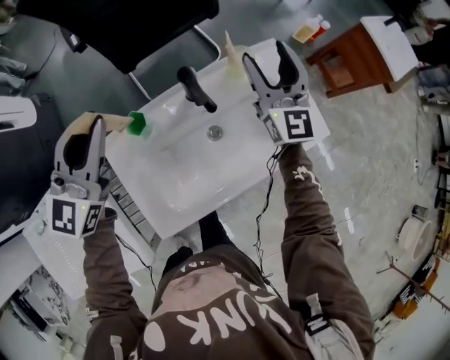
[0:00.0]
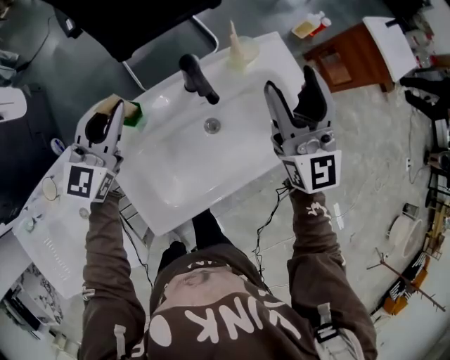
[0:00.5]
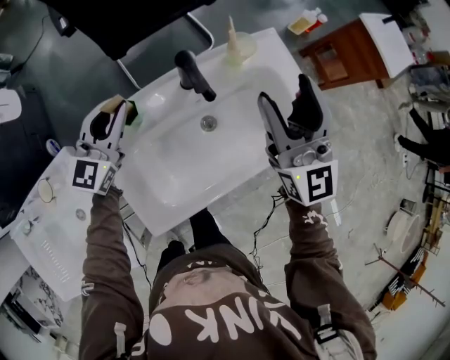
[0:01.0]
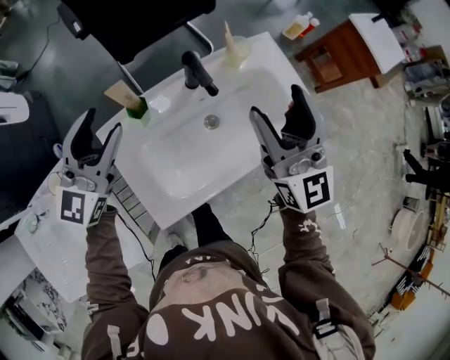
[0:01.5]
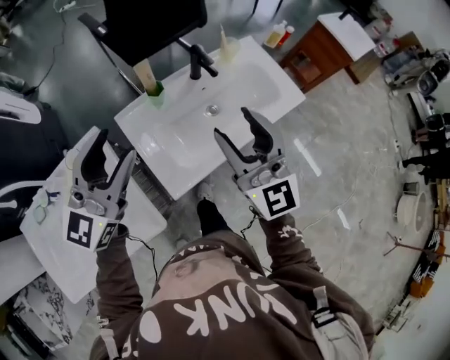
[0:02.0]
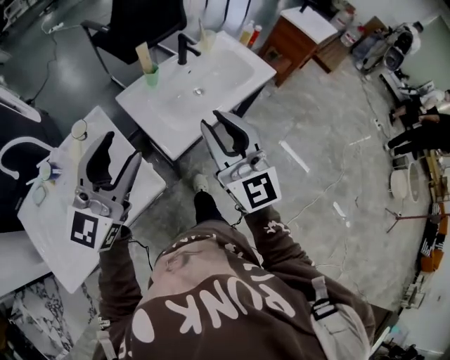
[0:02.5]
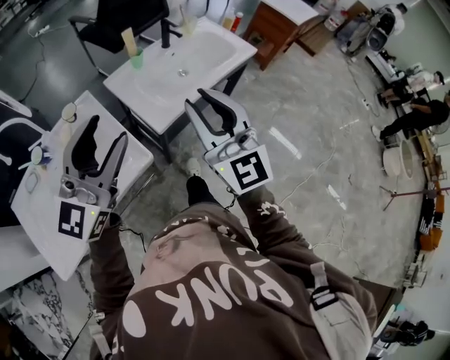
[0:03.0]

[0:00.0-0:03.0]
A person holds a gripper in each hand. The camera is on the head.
0:00.0 to 0:01.5: The right gripper shifts some 15 cm backward, while the left gripper travels downward and back again, approximately 15 cm each way, and opens up.
0:01.5 to 0:03.0: The pair of grippers is taken backward, about 40 cm. The right gripper closes up.

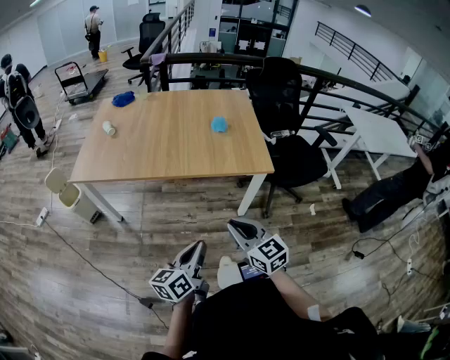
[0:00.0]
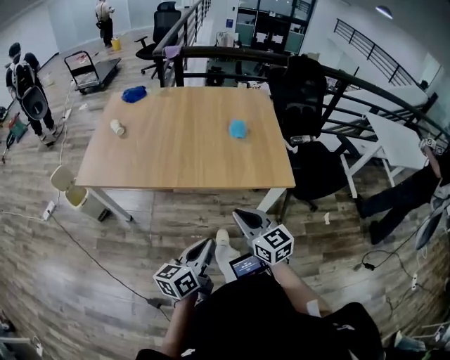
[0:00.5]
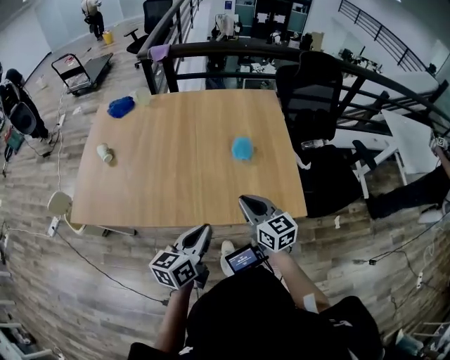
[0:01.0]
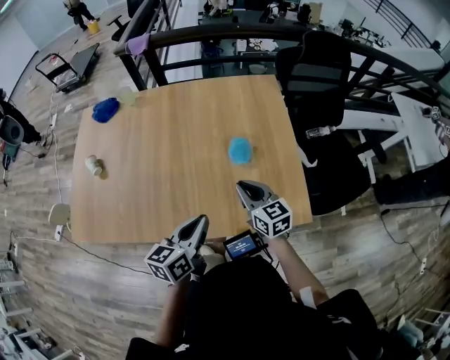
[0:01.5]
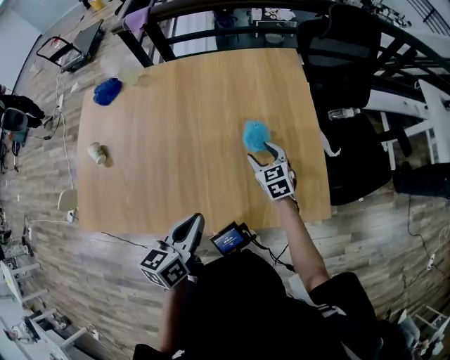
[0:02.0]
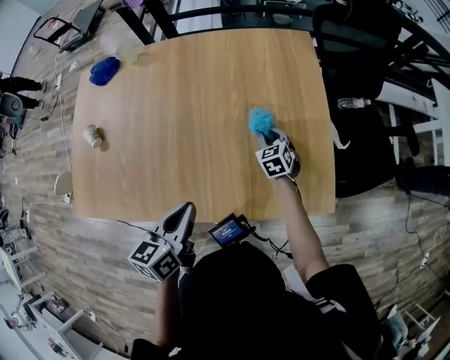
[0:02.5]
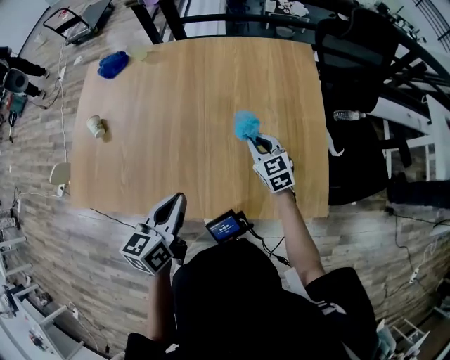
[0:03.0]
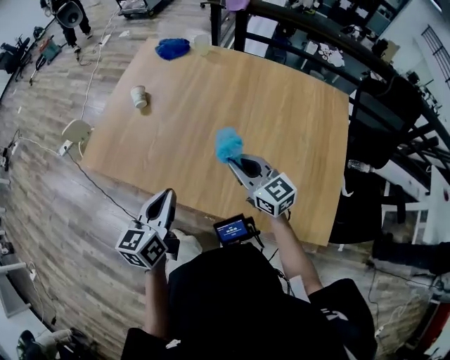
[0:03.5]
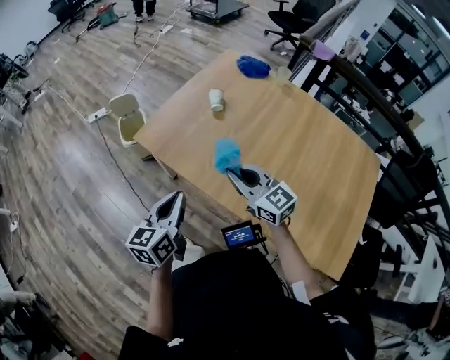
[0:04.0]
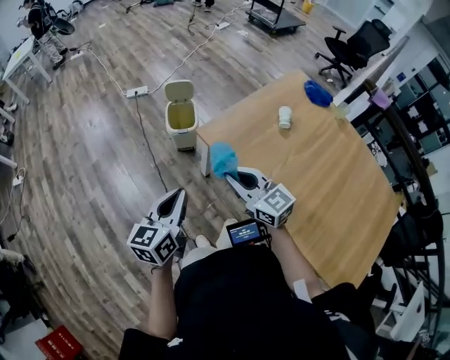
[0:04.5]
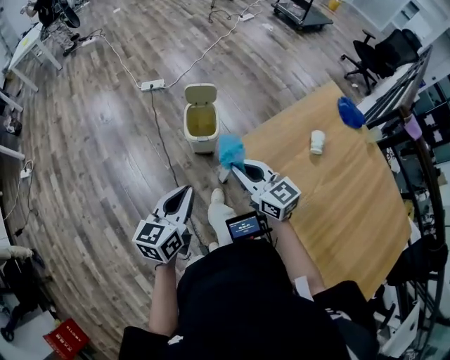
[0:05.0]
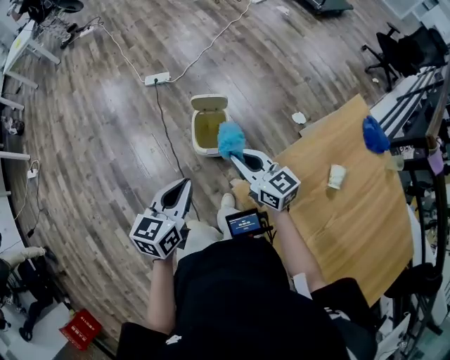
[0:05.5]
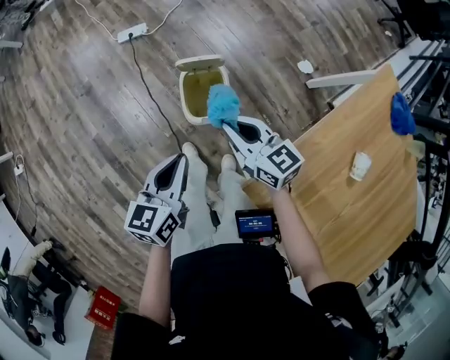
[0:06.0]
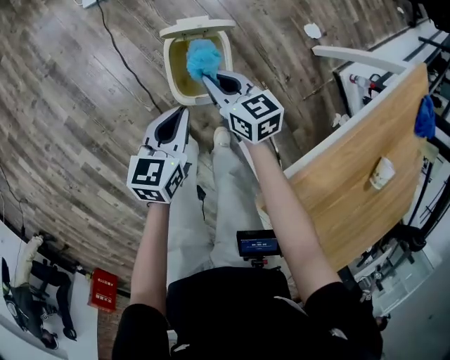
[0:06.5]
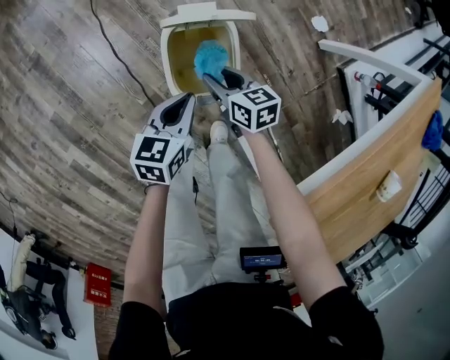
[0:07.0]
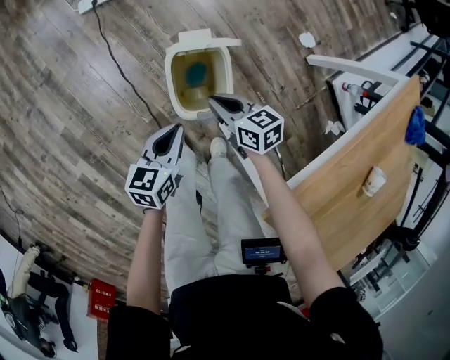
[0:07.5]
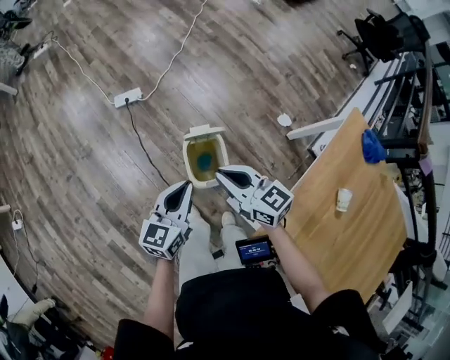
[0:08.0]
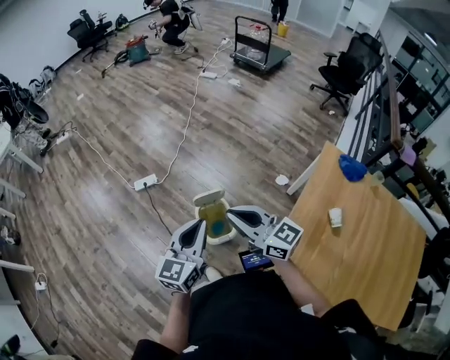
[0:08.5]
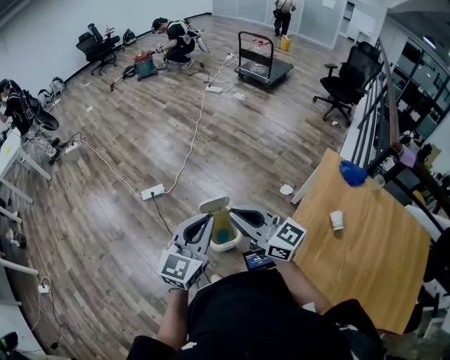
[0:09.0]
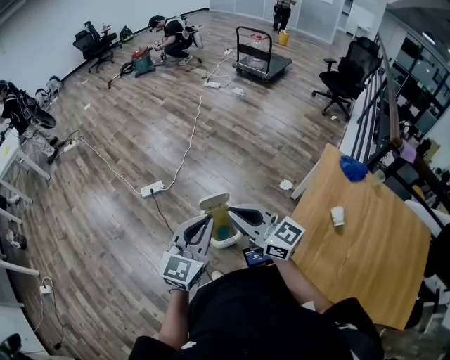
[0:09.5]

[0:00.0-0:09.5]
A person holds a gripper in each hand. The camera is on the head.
0:00.0 to 0:02.0: The pair of grippers is taken forward, approximately 60 cm. The right gripper swivels approximately 20 degrees, and opens; the left gripper swivels roughly 20 degrees.
0:02.0 to 0:04.0: The left gripper shifts by some 40 cm, and swivels about 40 degrees. The right gripper ends up approximately 50 cm from where it was, rotates approximately 60 degrees, and closes its fingers.
0:04.0 to 0:05.5: Both grippers are carried forward and to the left, about 60 cm. The right gripper rotates some 20 degrees.
0:05.5 to 0:07.5: The two grippers go approximately 50 cm downward and forward. The right gripper rotates about 30 degrees, and opens, then closes again.
0:07.5 to 0:09.5: Both grippers travel together upward, approximately 60 cm. The right gripper tips its fingers upward by about 40 degrees. Meanwhile the left gripper rotates around the line of its fingers by about 40 degrees, clockwise from behind.

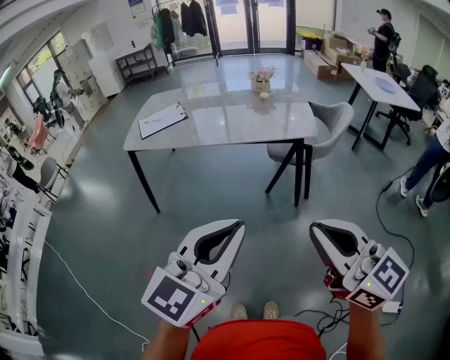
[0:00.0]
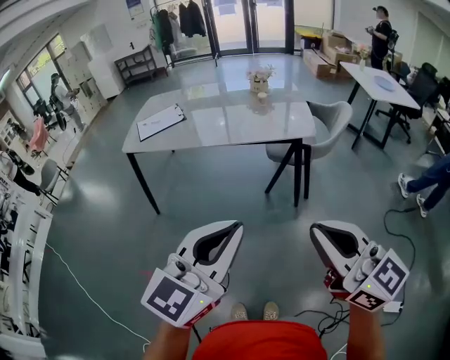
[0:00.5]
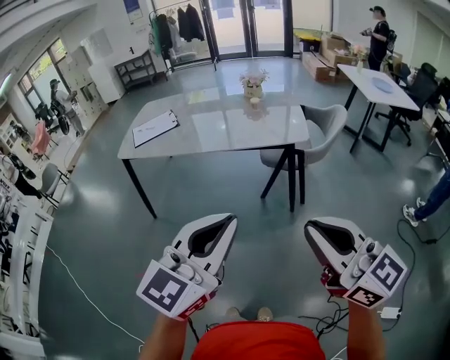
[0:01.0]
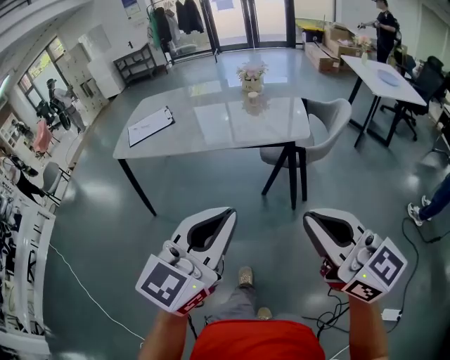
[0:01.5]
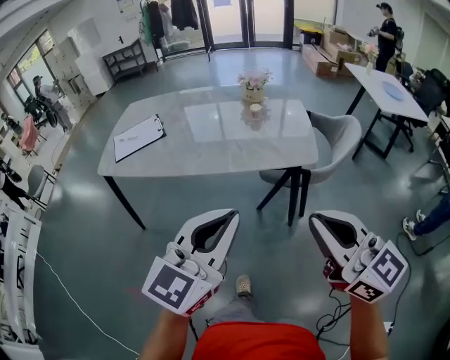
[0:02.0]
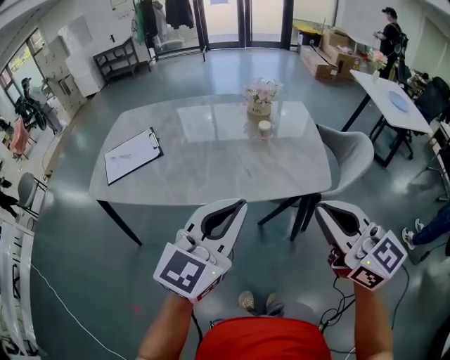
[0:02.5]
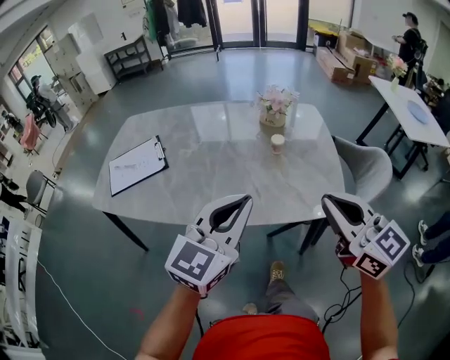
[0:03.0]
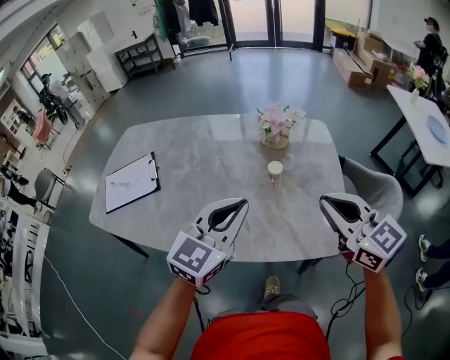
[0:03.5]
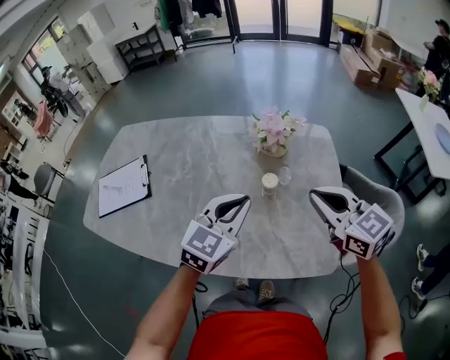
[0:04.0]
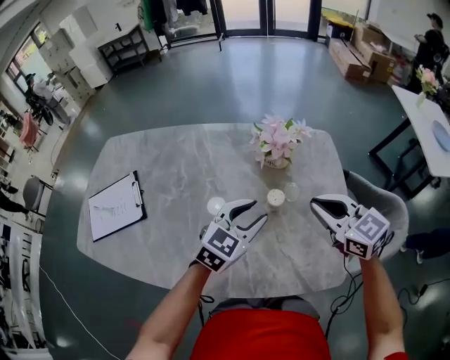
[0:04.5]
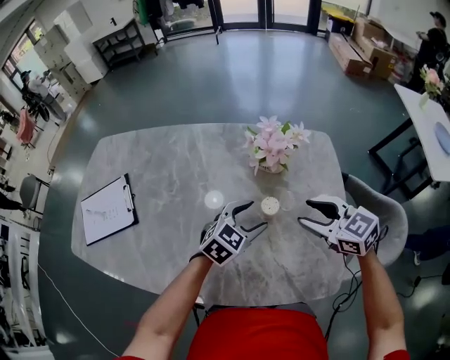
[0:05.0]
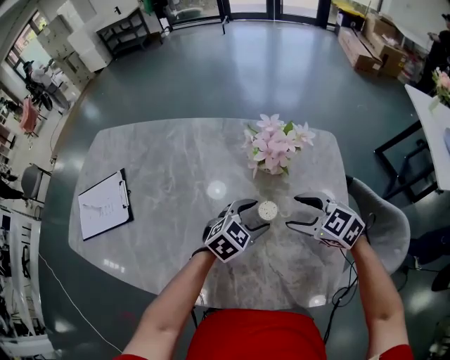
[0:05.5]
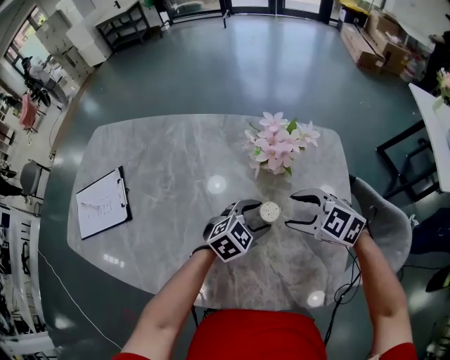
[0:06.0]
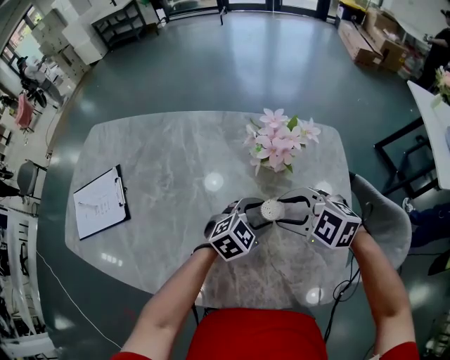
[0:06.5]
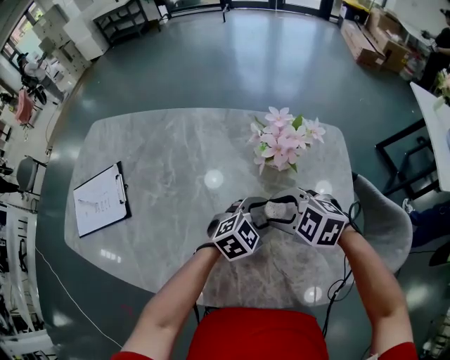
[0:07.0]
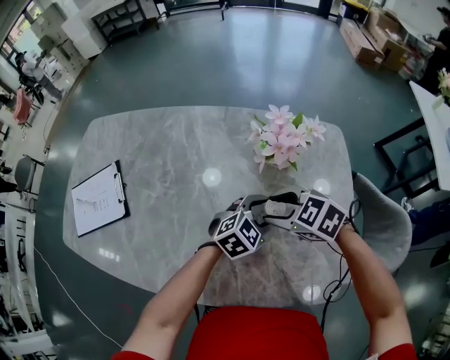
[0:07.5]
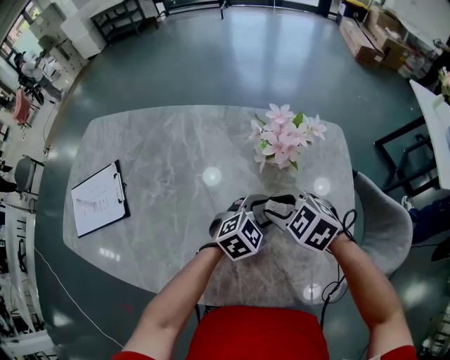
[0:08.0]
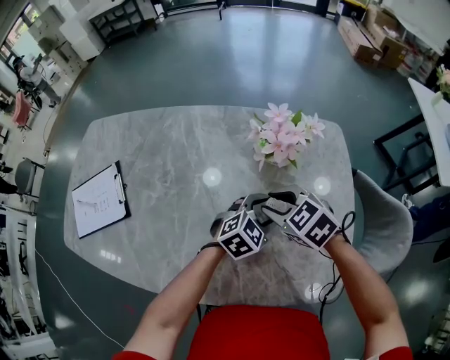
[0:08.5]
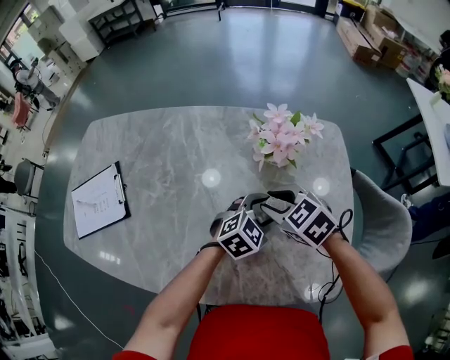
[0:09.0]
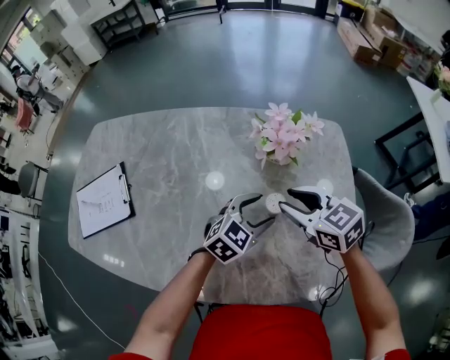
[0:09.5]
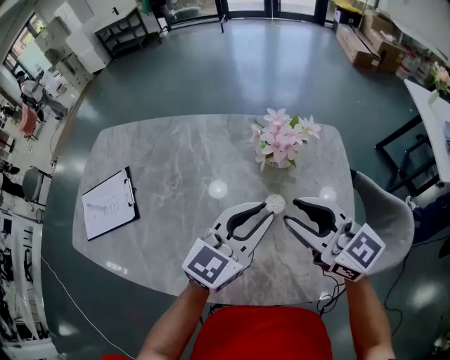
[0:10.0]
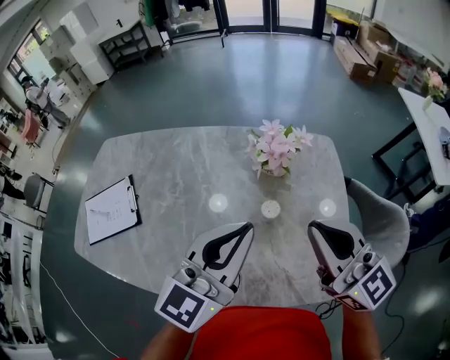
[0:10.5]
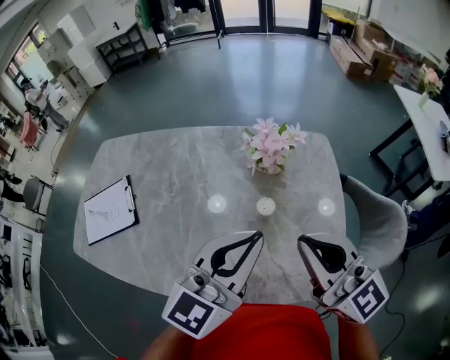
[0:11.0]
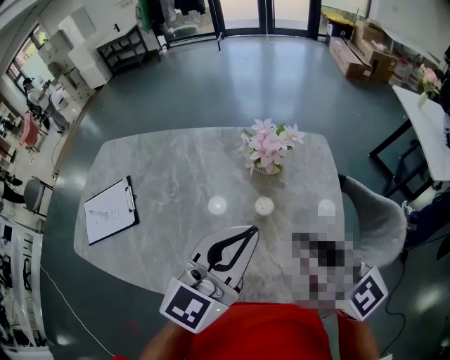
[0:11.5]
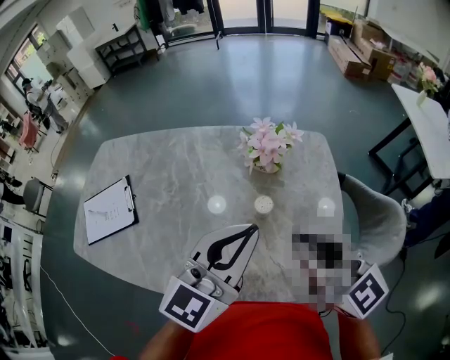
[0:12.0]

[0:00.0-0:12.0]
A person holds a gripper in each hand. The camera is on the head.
0:00.0 to 0:02.0: The grippers both shift forward by about 25 cm.
0:02.0 to 0:04.0: Both grippers are carried forward, roughly 50 cm. The left gripper changes its angle by roughly 20 degrees.
0:04.0 to 0:06.0: The grippers both shift downward and forward by some 20 cm. The left gripper rotates about 30 degrees, and opens its fingers. Meanwhile the right gripper turns by some 40 degrees, and opens up.
0:06.0 to 0:08.0: The right gripper moves approximately 5 cm, and closes up.
0:08.0 to 0:10.0: The two grippers go roughly 15 cm upward. The left gripper points its fingers roughly 30 degrees further upward, and closes up. The right gripper tips its fingers upward by some 50 degrees.
0:10.0 to 0:12.0: The right gripper is displaced backward and upward by roughly 10 cm, and closes its fingers. Meanwhile the left gripper moves upward and backward, about 10 cm.

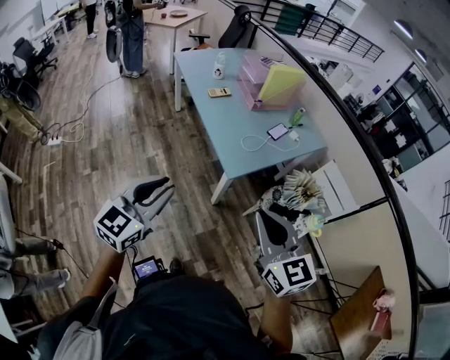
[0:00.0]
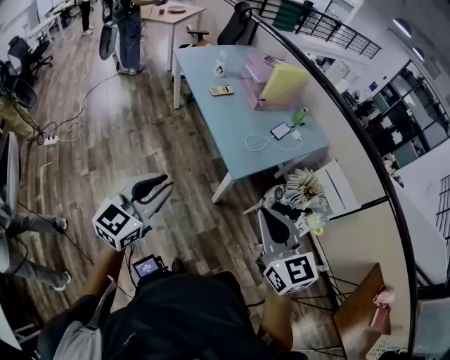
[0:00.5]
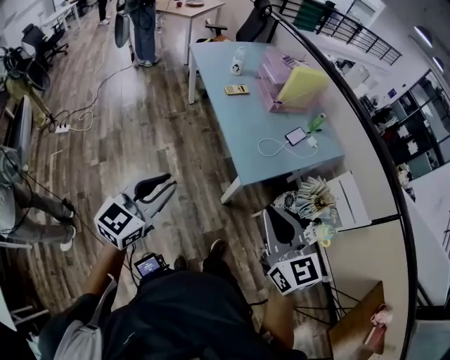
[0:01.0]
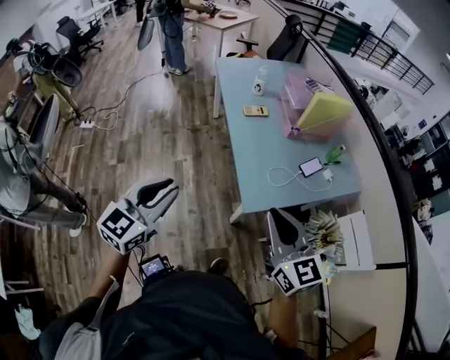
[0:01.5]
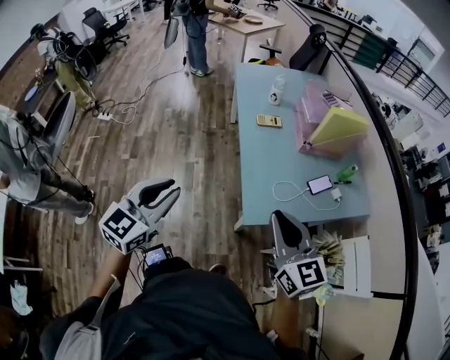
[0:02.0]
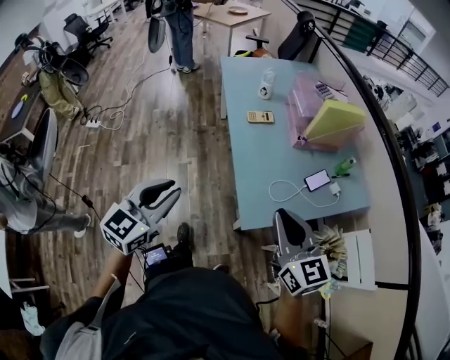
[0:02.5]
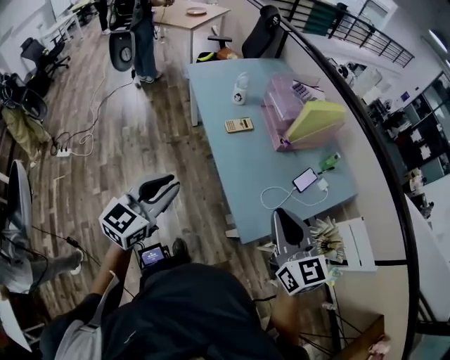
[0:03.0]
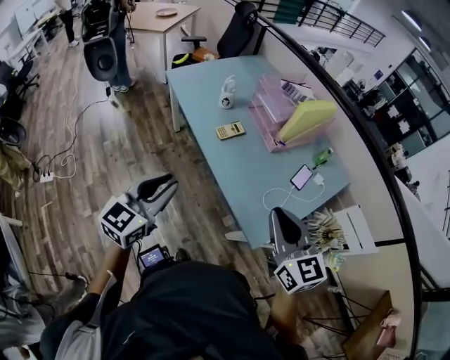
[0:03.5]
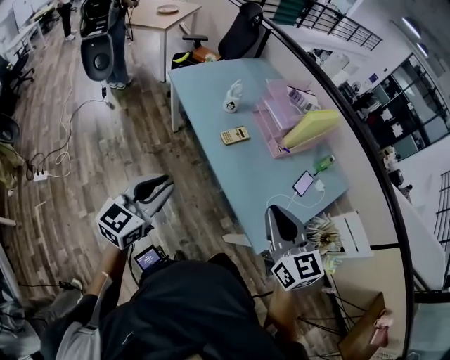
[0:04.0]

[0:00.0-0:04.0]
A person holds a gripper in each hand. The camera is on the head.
0:00.0 to 0:02.0: The right gripper shifts roughly 25 cm forward, and turns by about 20 degrees. Meanwhile the left gripper is displaced forward by approximately 15 cm, and turns by approximately 20 degrees.
0:02.0 to 0:04.0: The right gripper shifts by some 25 cm, and swivels approximately 30 degrees. Meanwhile the left gripper shifts by roughly 35 cm, and swivels approximately 30 degrees.
